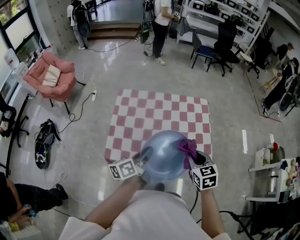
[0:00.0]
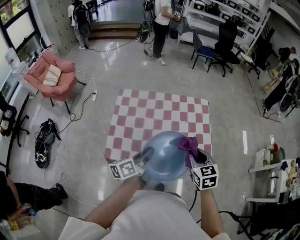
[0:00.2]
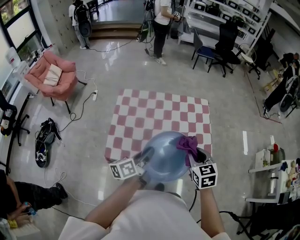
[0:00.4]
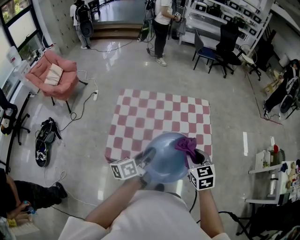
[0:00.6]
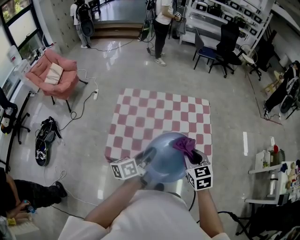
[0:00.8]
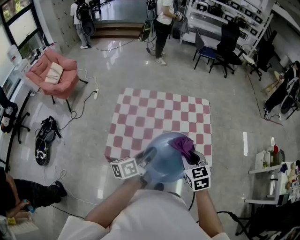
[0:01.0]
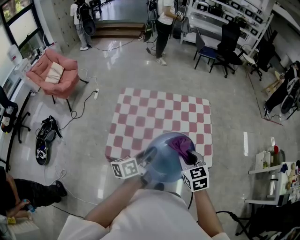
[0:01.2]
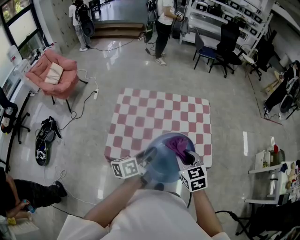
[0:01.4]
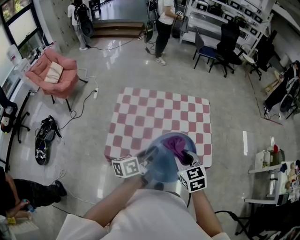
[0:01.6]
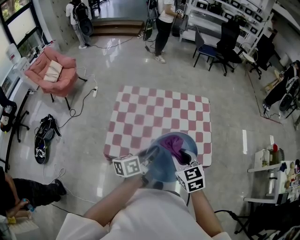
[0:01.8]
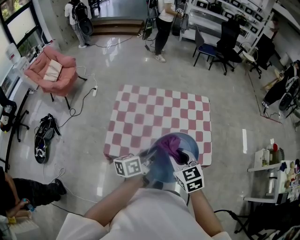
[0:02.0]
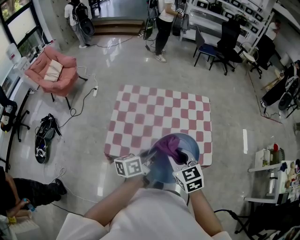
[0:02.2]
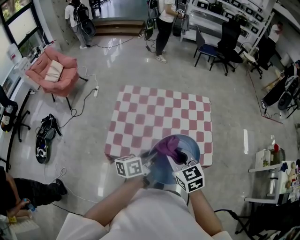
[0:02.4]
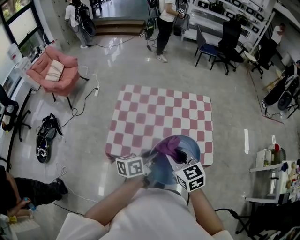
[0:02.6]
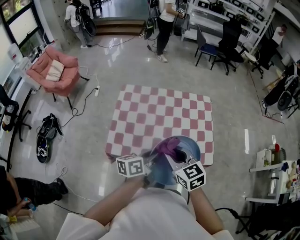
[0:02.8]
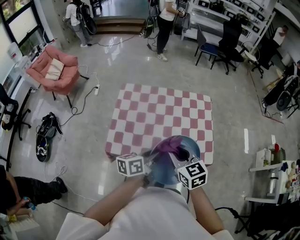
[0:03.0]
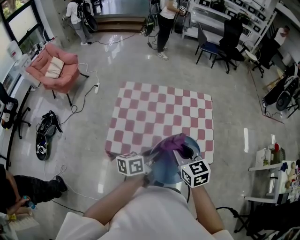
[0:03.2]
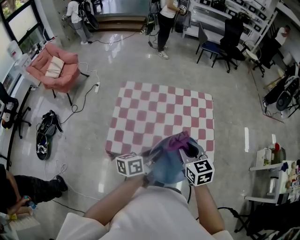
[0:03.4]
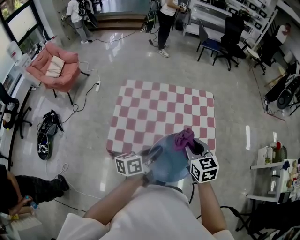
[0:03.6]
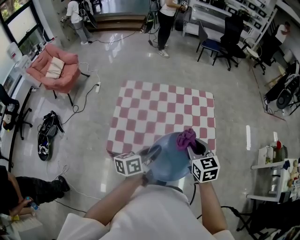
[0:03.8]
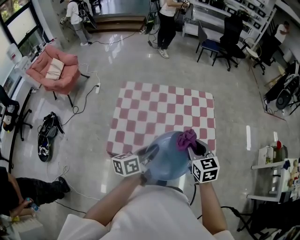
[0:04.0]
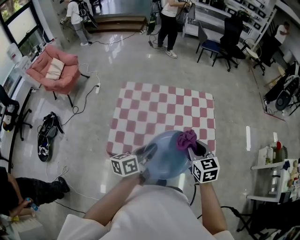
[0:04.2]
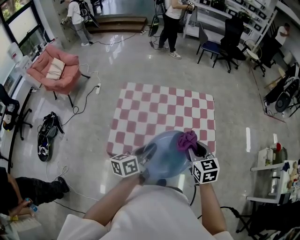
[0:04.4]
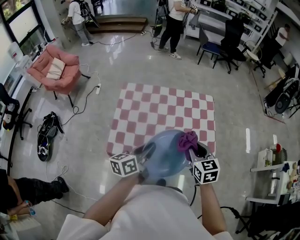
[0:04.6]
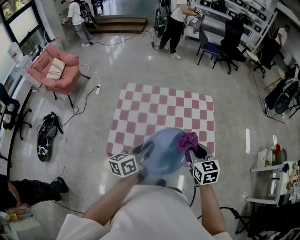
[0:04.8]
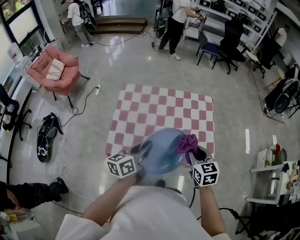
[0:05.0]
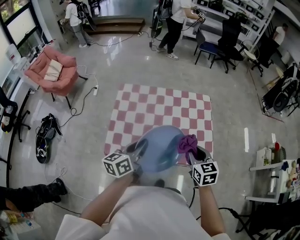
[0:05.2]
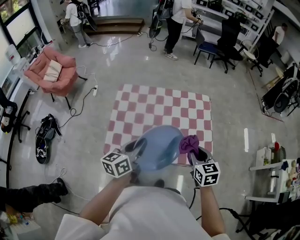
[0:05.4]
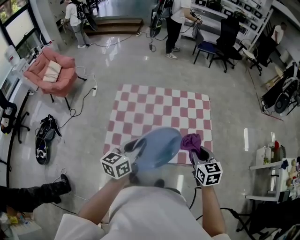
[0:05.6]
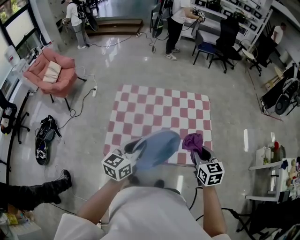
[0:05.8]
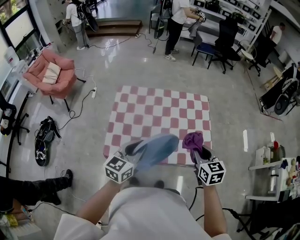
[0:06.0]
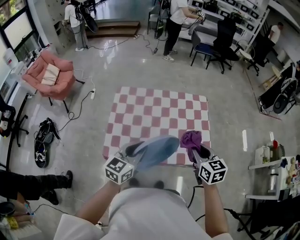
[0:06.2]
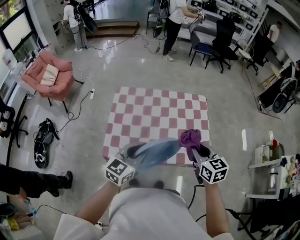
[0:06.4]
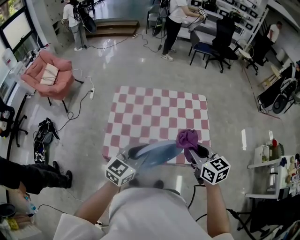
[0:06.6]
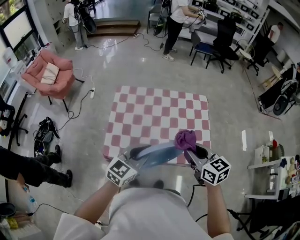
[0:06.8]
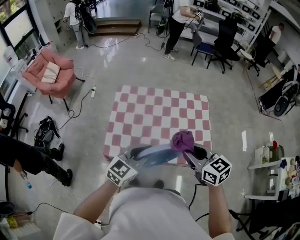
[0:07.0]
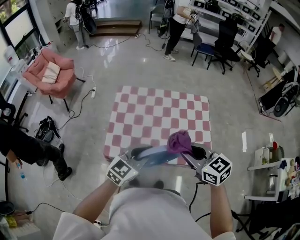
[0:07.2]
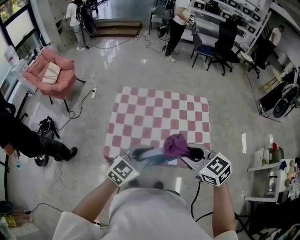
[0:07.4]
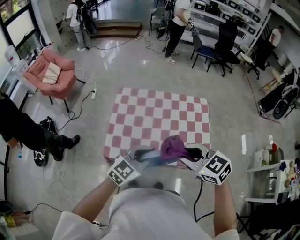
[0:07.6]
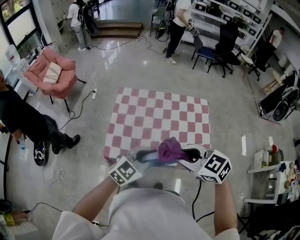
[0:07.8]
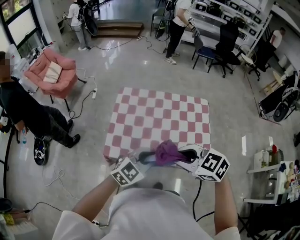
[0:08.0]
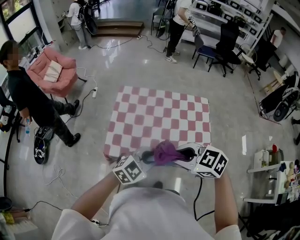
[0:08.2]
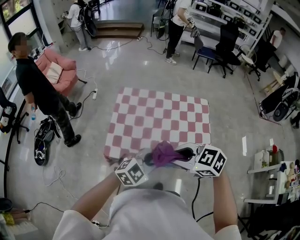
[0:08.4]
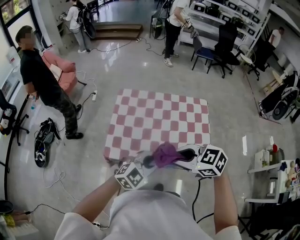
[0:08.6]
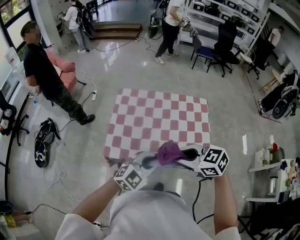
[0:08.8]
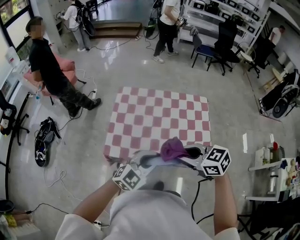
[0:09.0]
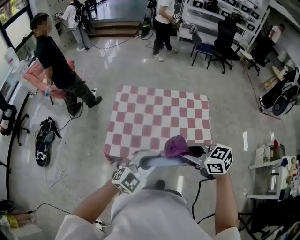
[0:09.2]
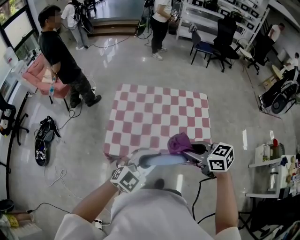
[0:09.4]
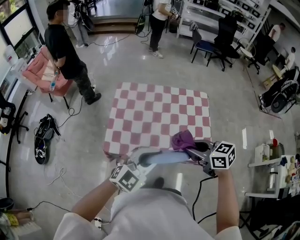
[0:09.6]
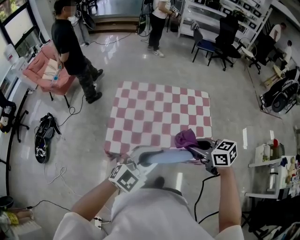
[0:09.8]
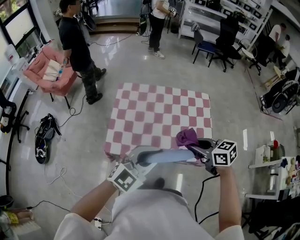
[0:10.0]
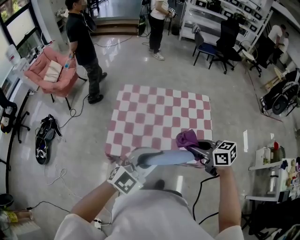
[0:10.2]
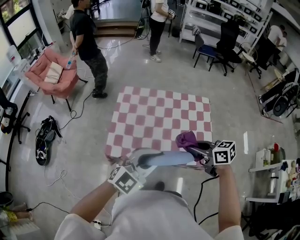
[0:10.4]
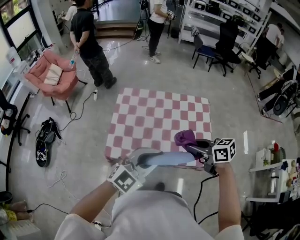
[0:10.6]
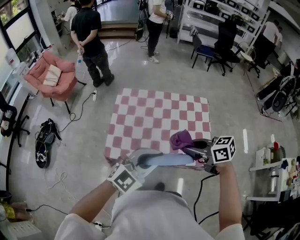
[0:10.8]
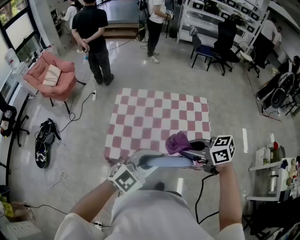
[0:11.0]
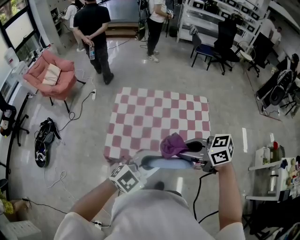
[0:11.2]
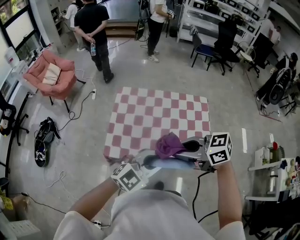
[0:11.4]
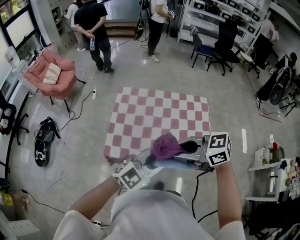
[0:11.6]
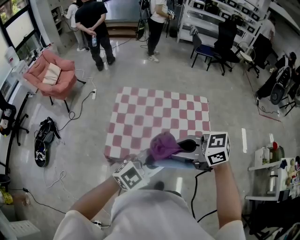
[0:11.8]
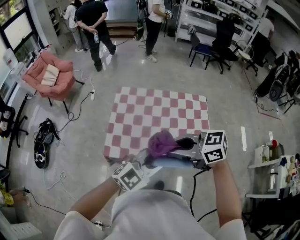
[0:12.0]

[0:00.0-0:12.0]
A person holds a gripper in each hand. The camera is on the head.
0:00.0 to 0:01.6: The right gripper heads to the left, covering some 5 cm.
0:01.6 to 0:03.0: The grippers move only a little.
0:03.0 to 0:04.4: The left gripper moves to the left, some 5 cm; the right gripper is displaced to the right by roughly 5 cm.
0:04.4 to 0:06.0: The right gripper travels to the right by some 5 cm; the left gripper changes its angle by some 40 degrees.
0:06.0 to 0:07.6: The right gripper is displaced to the left, upward and backward by about 15 cm, and changes its angle by approximately 40 degrees. The left gripper changes place by some 5 cm, and changes its angle by approximately 30 degrees.
0:07.6 to 0:09.0: The grippers move only a little.
0:09.0 to 0:10.4: The left gripper shifts some 5 cm upward; the right gripper shifts approximately 5 cm to the right, and turns by approximately 20 degrees.
0:10.4 to 0:12.0: The right gripper shifts by some 15 cm, and swivels roughly 30 degrees.

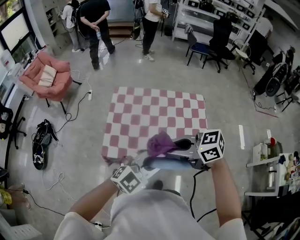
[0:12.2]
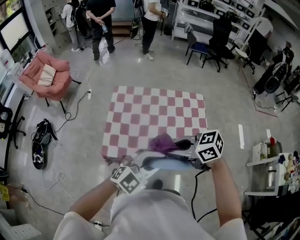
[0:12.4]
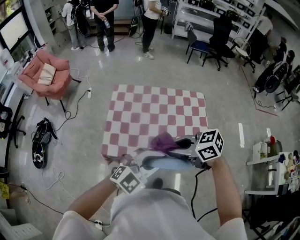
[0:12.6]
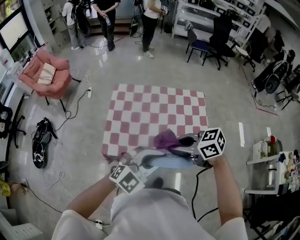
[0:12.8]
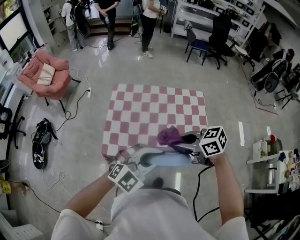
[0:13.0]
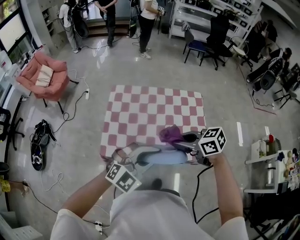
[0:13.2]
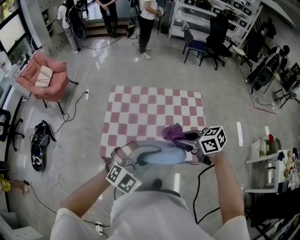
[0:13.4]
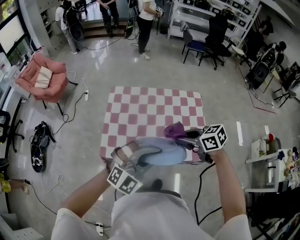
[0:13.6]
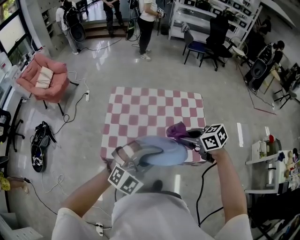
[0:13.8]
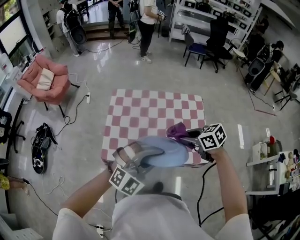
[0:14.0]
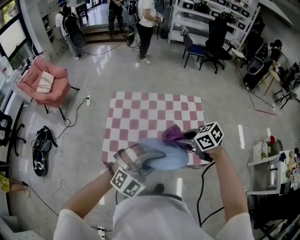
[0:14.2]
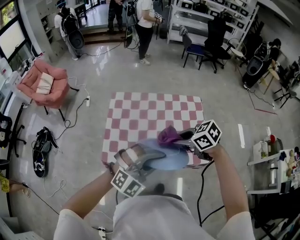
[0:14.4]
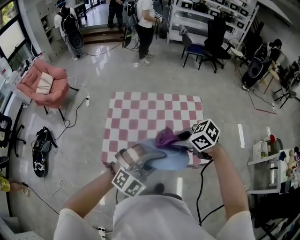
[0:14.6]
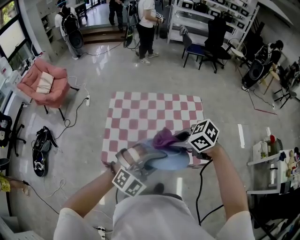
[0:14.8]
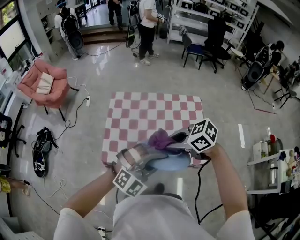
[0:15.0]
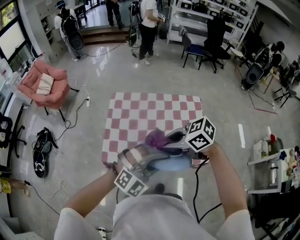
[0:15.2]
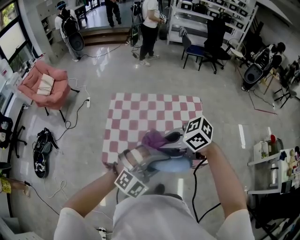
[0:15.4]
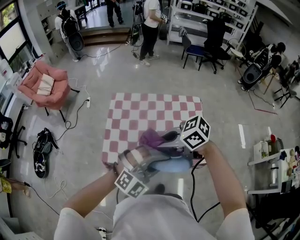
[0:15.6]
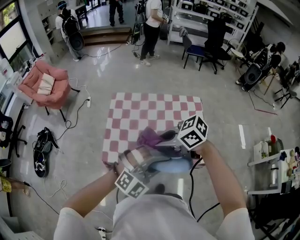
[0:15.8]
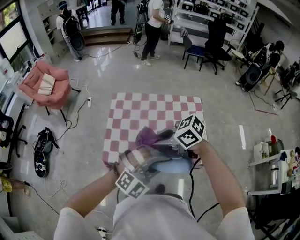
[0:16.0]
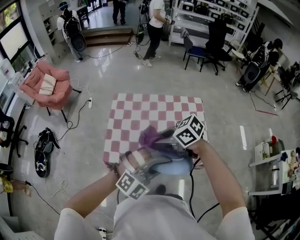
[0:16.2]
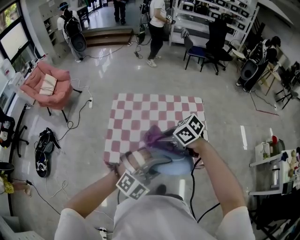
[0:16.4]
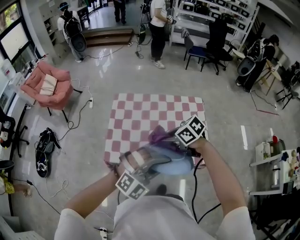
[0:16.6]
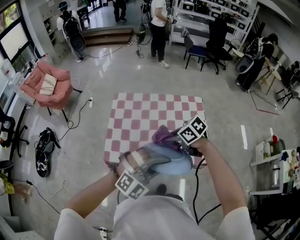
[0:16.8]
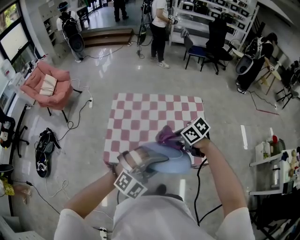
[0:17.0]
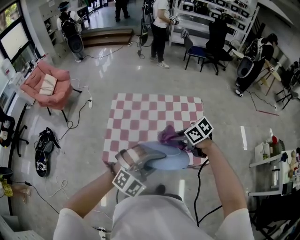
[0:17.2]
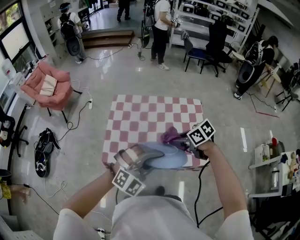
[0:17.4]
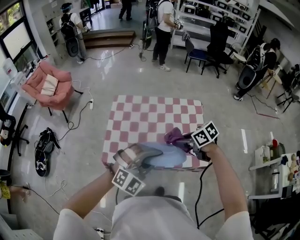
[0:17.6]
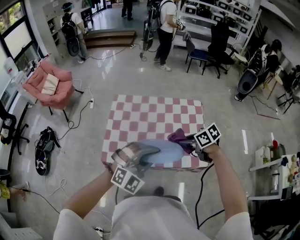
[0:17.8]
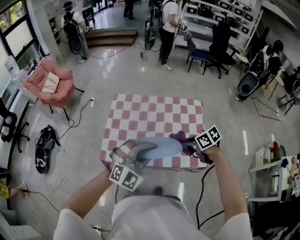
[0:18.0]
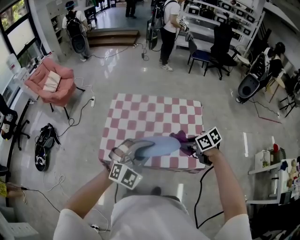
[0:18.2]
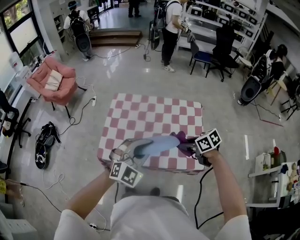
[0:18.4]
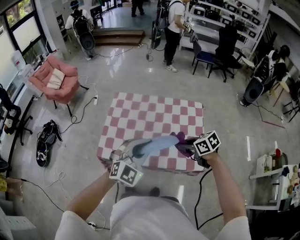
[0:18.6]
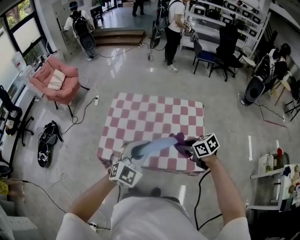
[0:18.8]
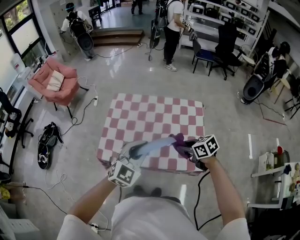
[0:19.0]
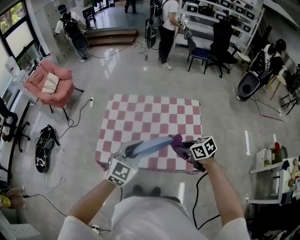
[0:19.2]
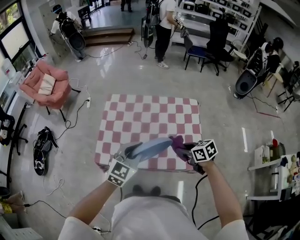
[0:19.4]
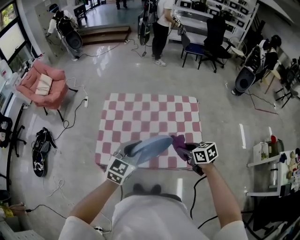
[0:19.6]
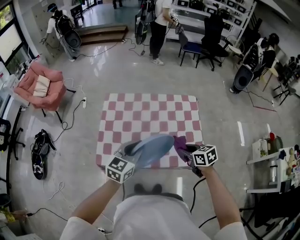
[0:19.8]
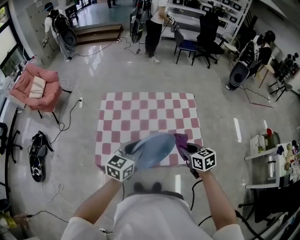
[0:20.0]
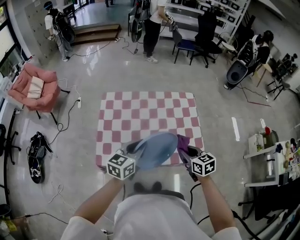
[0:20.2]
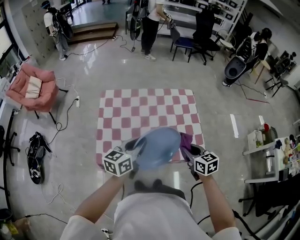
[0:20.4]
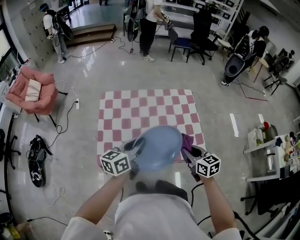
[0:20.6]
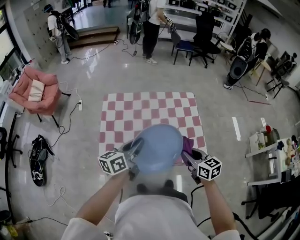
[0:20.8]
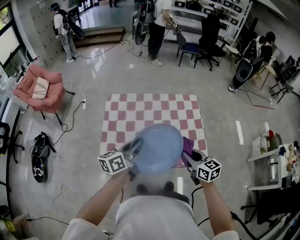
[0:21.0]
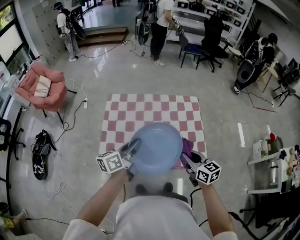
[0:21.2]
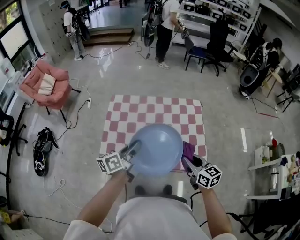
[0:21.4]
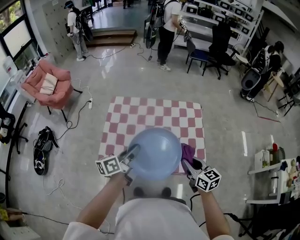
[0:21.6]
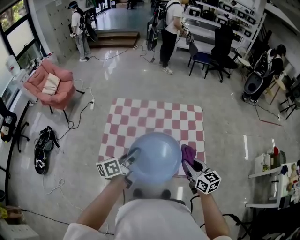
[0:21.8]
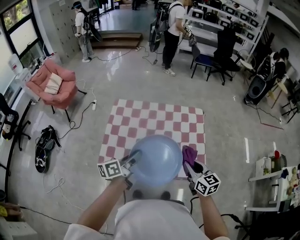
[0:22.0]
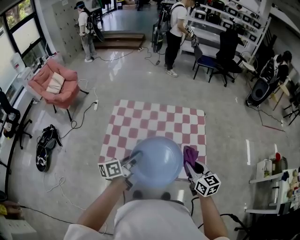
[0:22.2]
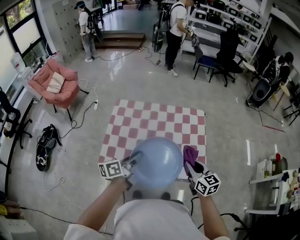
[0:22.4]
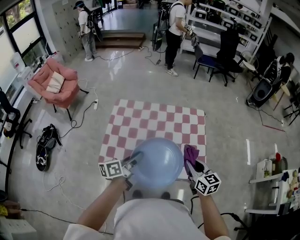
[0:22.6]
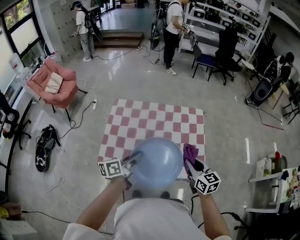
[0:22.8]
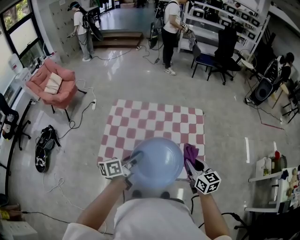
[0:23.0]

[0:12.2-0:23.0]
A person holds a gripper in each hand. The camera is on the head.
0:12.2 to 0:13.8: The right gripper ends up about 15 cm from where it was, and swivels approximately 30 degrees; the left gripper swivels about 30 degrees.
0:13.8 to 0:15.2: The right gripper changes place by roughly 10 cm, and turns by some 20 degrees.
0:15.2 to 0:16.8: The right gripper is displaced downward by some 10 cm.
0:16.8 to 0:18.4: The left gripper moves approximately 10 cm, and changes its angle by some 30 degrees. The right gripper changes place by about 15 cm.
0:18.4 to 0:20.0: The left gripper moves forward, downward and to the left, about 10 cm, and rotates around the line of its fingers by about 50 degrees, counterclockwise from behind, while the right gripper swivels some 30 degrees.
0:20.0 to 0:21.4: The left gripper rolls counterclockwise, seen from behind, by some 40 degrees.
0:21.4 to 0:23.0: The right gripper ends up some 5 cm from where it was.

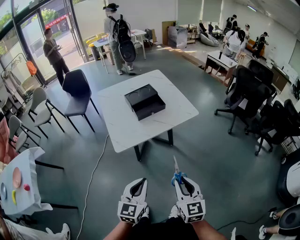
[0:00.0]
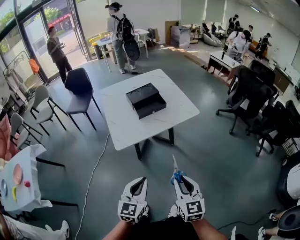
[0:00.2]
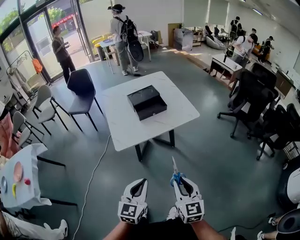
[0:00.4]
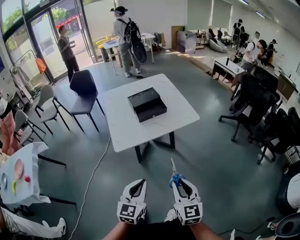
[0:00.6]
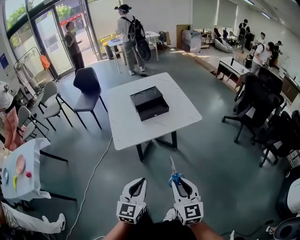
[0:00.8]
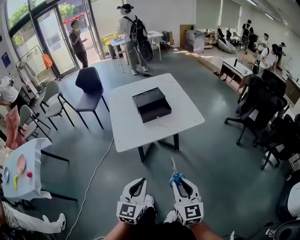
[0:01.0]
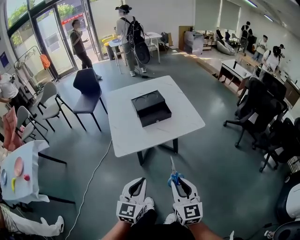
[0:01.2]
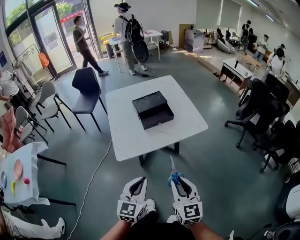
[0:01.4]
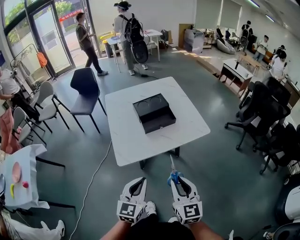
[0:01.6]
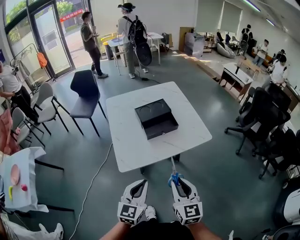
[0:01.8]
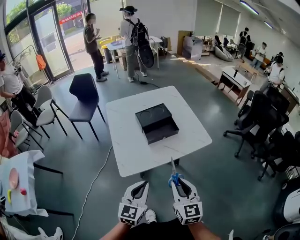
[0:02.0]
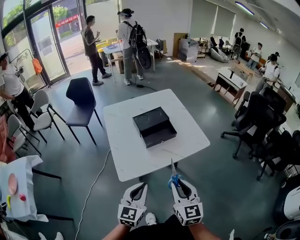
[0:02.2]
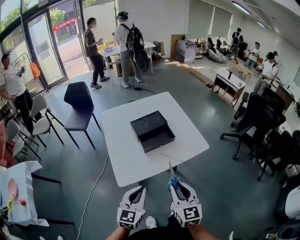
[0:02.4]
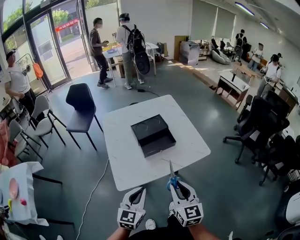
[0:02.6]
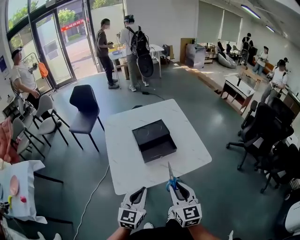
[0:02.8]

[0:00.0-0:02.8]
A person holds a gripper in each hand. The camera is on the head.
0:00.0 to 0:01.4: Both grippers move forward, some 10 cm.
0:01.4 to 0:02.8: Both grippers travel together forward, about 15 cm.
